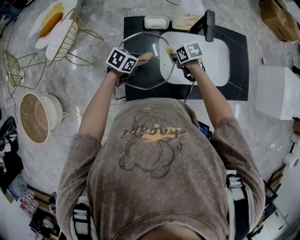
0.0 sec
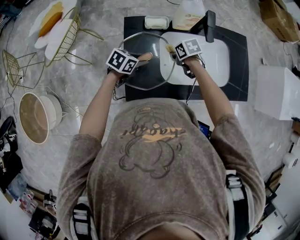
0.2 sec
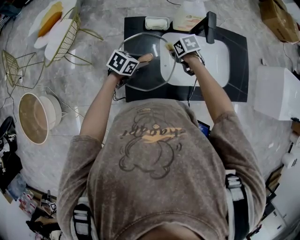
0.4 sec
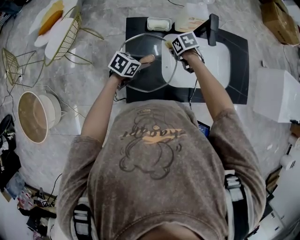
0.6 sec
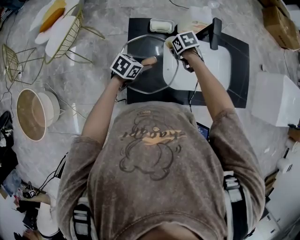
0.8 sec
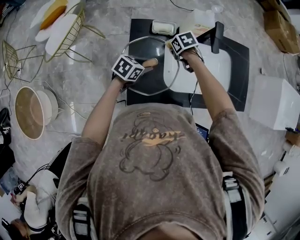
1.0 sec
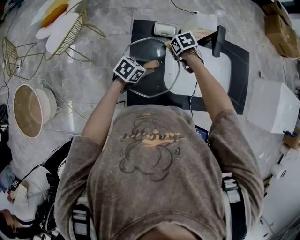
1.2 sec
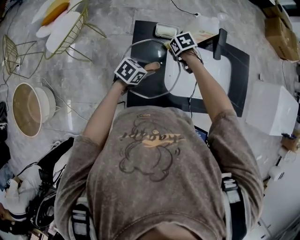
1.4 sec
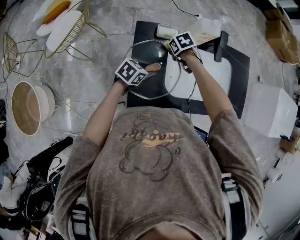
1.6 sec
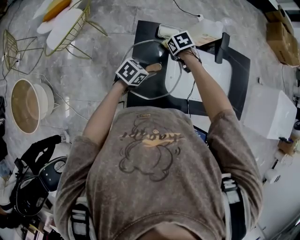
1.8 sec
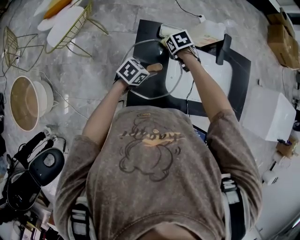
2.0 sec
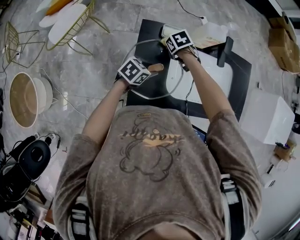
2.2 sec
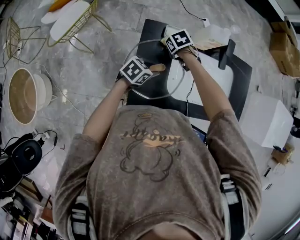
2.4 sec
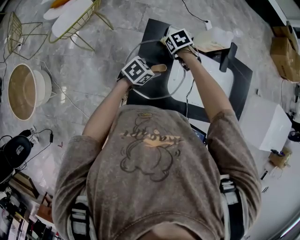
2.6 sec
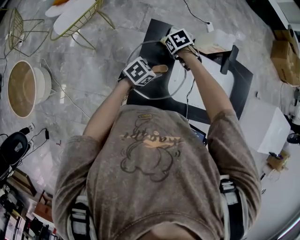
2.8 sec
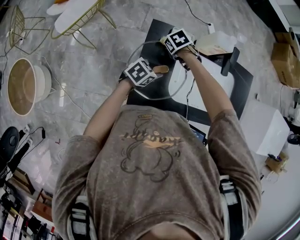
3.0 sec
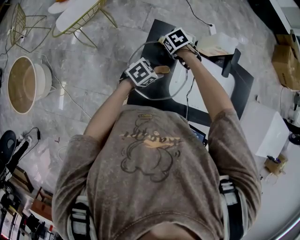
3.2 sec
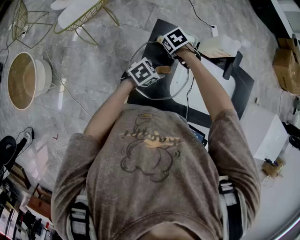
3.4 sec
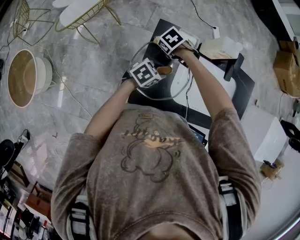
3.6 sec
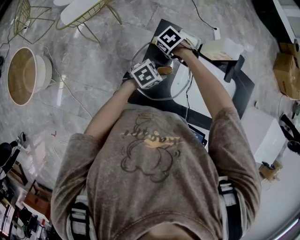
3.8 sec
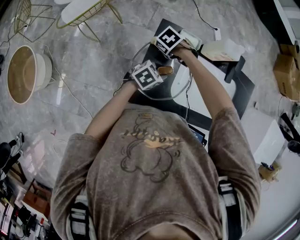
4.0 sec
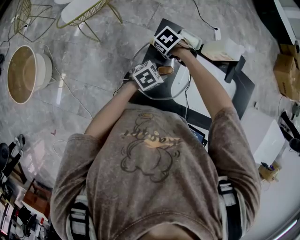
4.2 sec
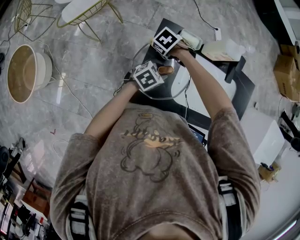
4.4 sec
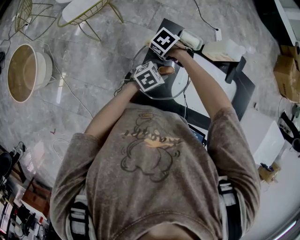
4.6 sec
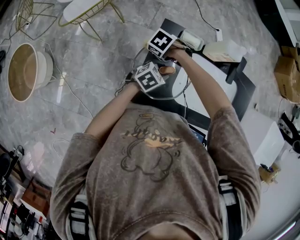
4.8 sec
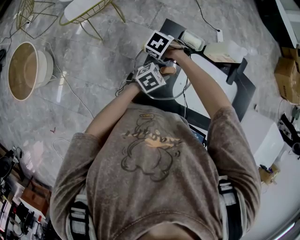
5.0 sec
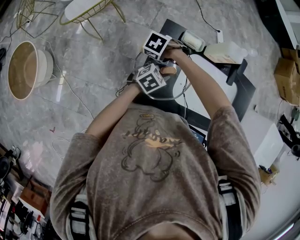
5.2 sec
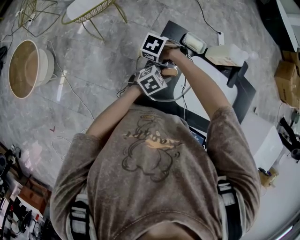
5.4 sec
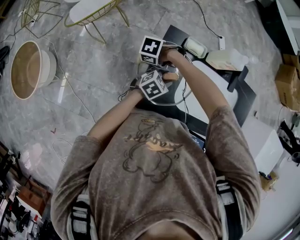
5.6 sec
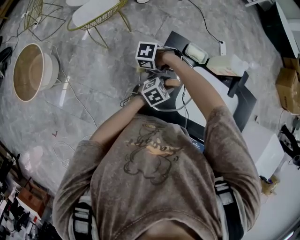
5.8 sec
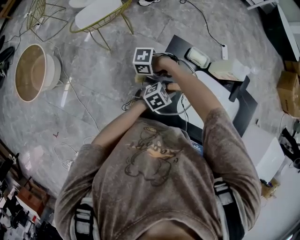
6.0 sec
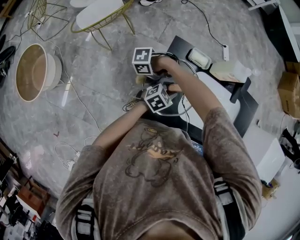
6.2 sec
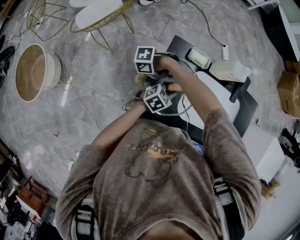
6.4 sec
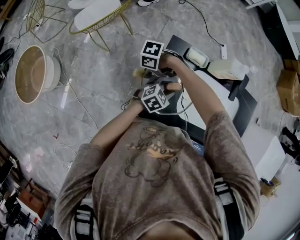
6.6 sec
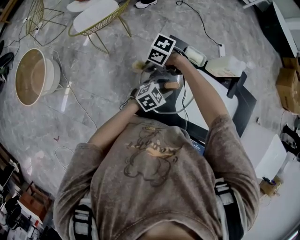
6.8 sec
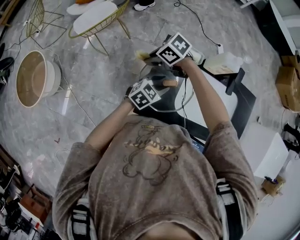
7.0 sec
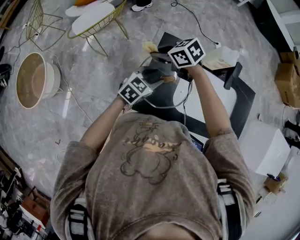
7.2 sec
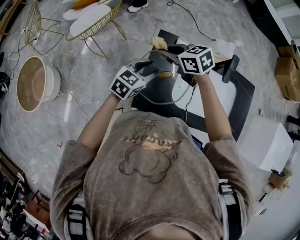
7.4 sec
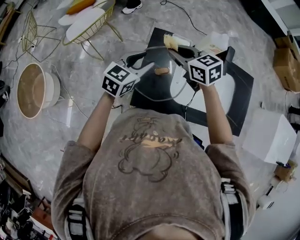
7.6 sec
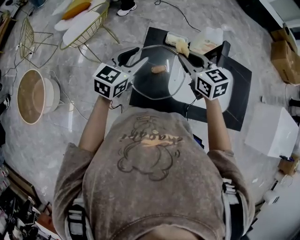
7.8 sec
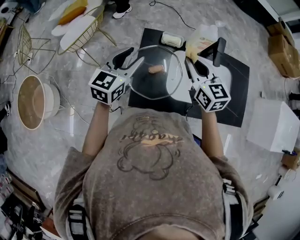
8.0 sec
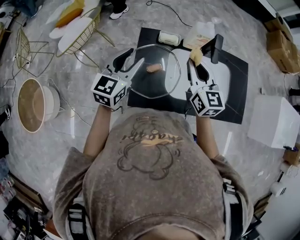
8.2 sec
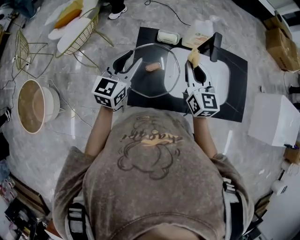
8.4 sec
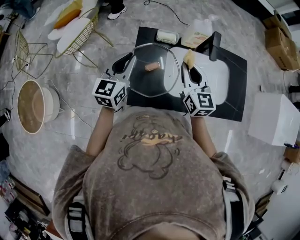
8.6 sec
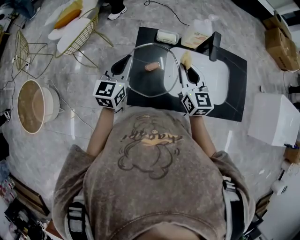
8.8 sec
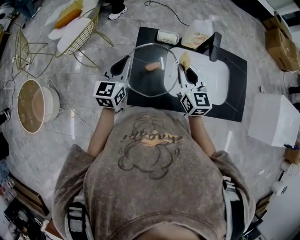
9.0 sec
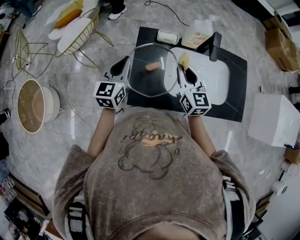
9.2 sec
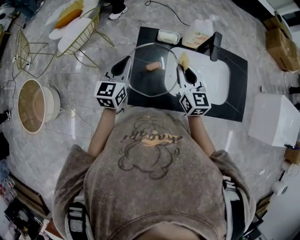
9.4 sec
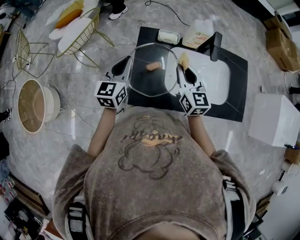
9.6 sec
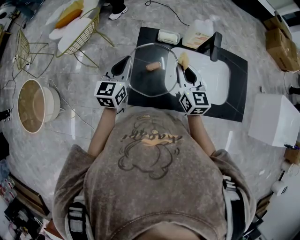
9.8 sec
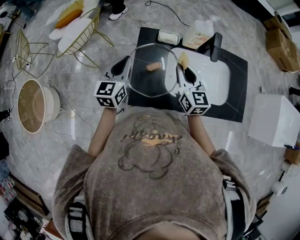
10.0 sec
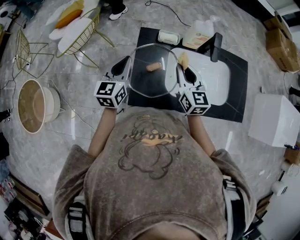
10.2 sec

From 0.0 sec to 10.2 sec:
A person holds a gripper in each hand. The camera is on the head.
From 0.0 sec to 1.4 sec: The right gripper moves some 10 cm.
From 1.4 sec to 3.0 sec: The right gripper moves approximately 10 cm.
From 3.0 sec to 4.4 sec: The right gripper moves approximately 10 cm, and turns by roughly 20 degrees.
From 4.4 sec to 5.8 sec: The right gripper ends up some 10 cm from where it was, and turns by approximately 40 degrees.
From 5.8 sec to 7.2 sec: The left gripper travels upward by roughly 10 cm, while the right gripper shifts approximately 15 cm upward, and swivels about 60 degrees.
From 7.2 sec to 8.8 sec: The left gripper moves upward, some 10 cm, changes its angle by roughly 30 degrees, and closes. Meanwhile the right gripper changes place by some 25 cm, and changes its angle by about 70 degrees.
From 8.8 sec to 10.2 sec: The grippers make only small movements.

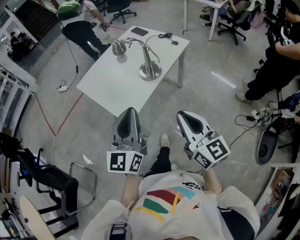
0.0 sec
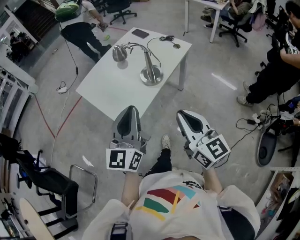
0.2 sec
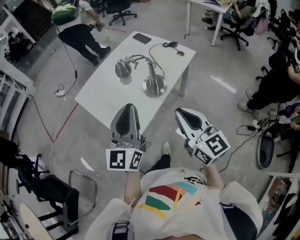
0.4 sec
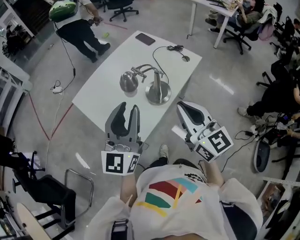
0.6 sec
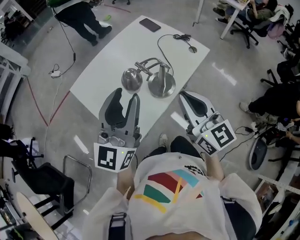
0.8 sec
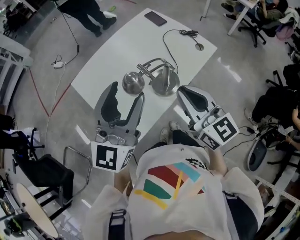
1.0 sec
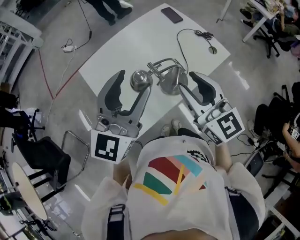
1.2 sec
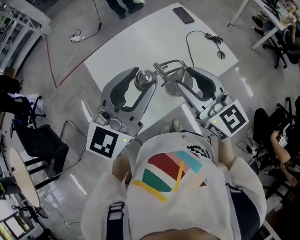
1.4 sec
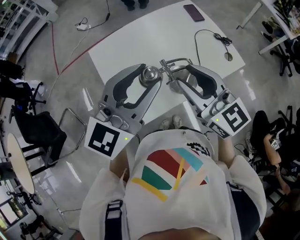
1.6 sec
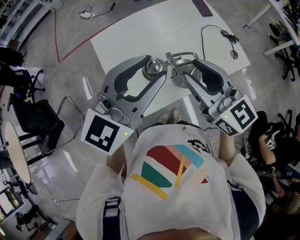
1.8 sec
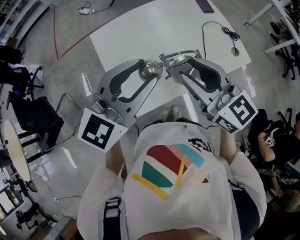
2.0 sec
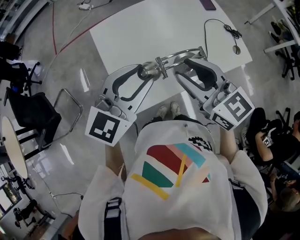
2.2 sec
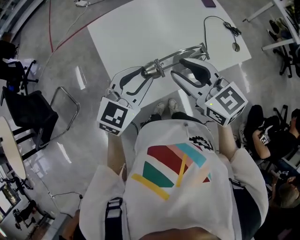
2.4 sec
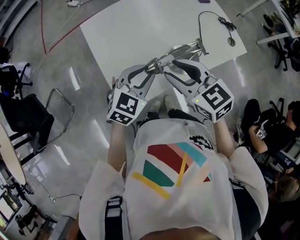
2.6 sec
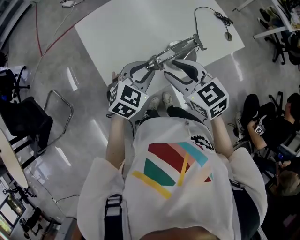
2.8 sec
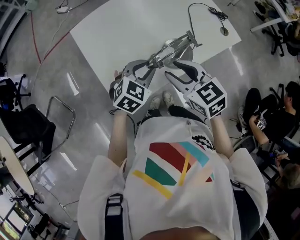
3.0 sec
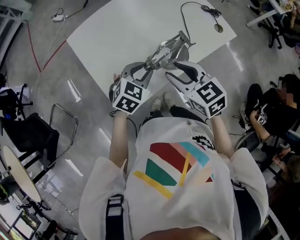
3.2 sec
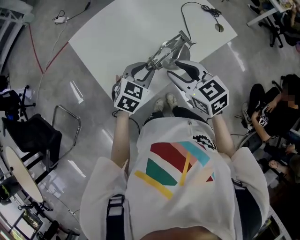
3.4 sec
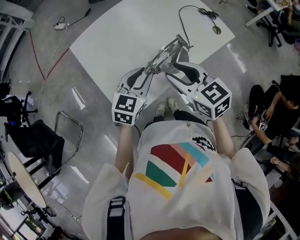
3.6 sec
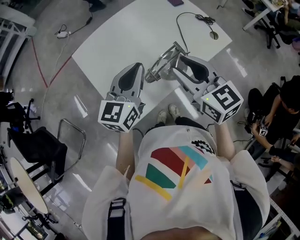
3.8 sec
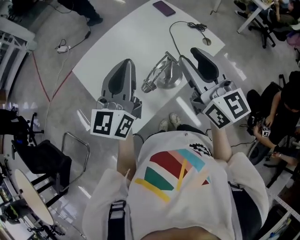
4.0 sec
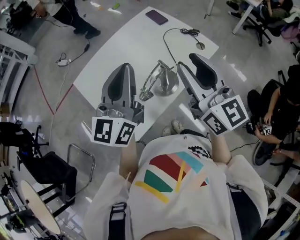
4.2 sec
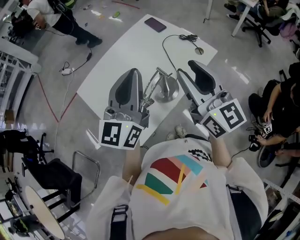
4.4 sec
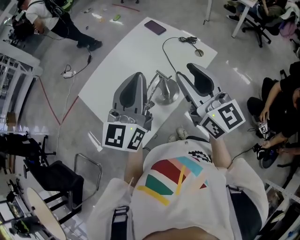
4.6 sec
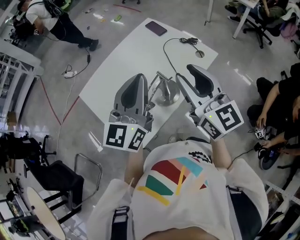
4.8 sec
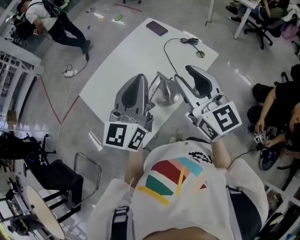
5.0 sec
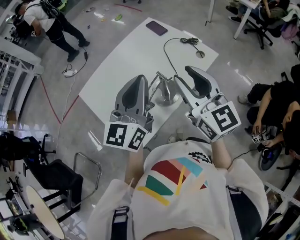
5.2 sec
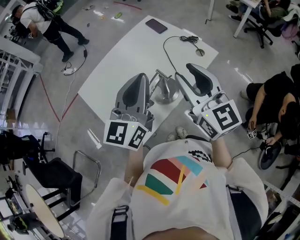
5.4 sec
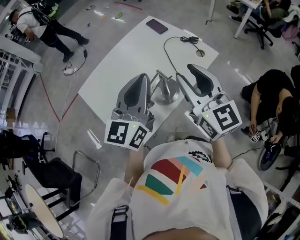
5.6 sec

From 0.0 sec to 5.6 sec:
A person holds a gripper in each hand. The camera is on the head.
From 0.0 sec to 1.4 sec: The two grippers go about 35 cm forward. The left gripper opens; the right gripper changes its angle by approximately 30 degrees, and opens up.
From 1.4 sec to 2.8 sec: The right gripper travels downward by some 15 cm, and turns by approximately 30 degrees; the left gripper is displaced downward by approximately 25 cm, and tilts its fingers some 40 degrees downward.
From 2.8 sec to 4.2 sec: The right gripper goes roughly 20 cm upward and to the right, and tilts its fingers approximately 40 degrees upward. Meanwhile the left gripper is displaced upward by roughly 25 cm, tilts its fingers some 50 degrees upward, and closes its fingers.
From 4.2 sec to 5.6 sec: The left gripper heads to the right, covering approximately 5 cm.

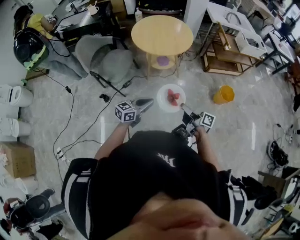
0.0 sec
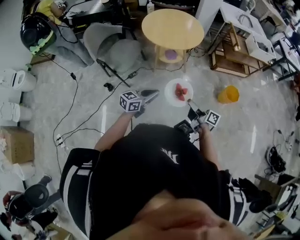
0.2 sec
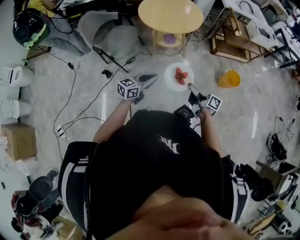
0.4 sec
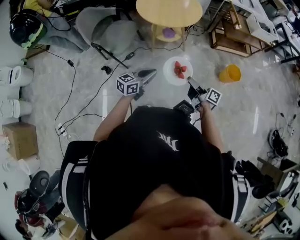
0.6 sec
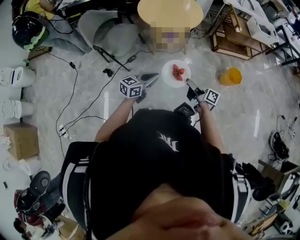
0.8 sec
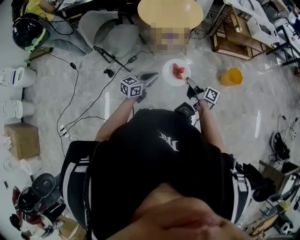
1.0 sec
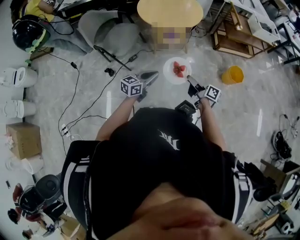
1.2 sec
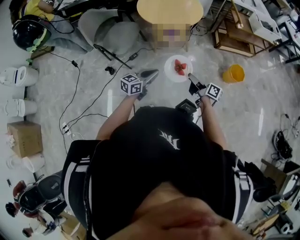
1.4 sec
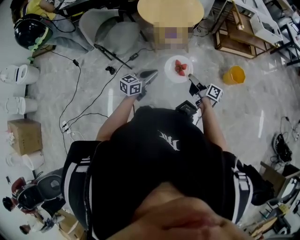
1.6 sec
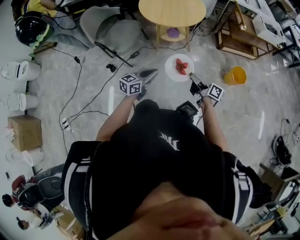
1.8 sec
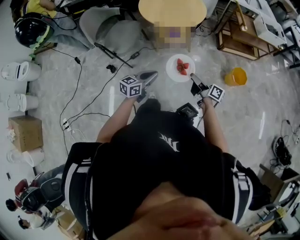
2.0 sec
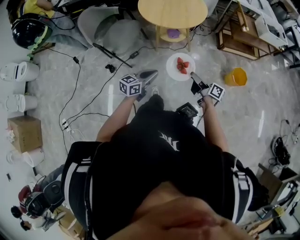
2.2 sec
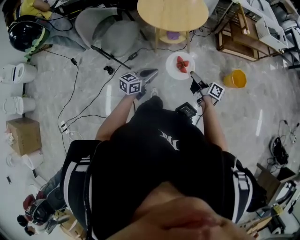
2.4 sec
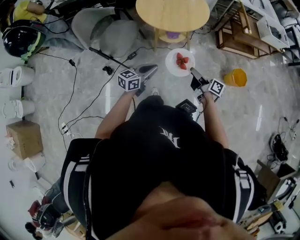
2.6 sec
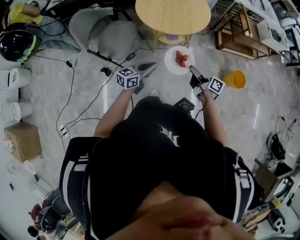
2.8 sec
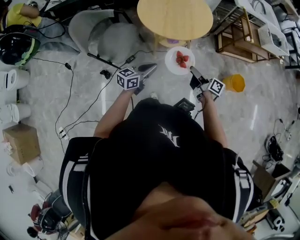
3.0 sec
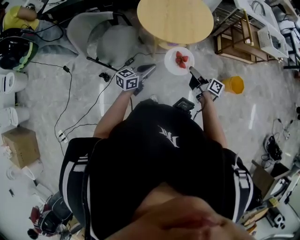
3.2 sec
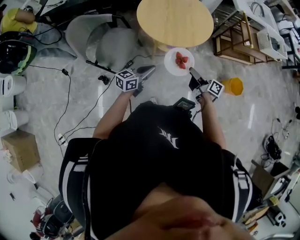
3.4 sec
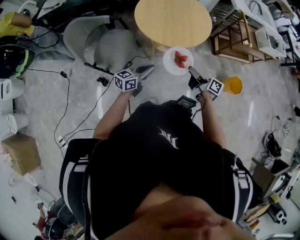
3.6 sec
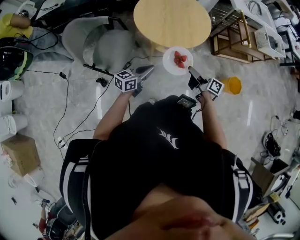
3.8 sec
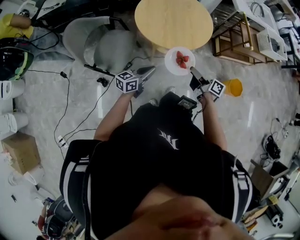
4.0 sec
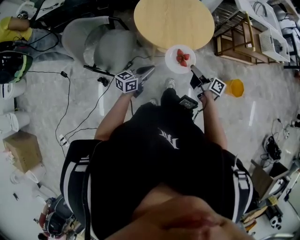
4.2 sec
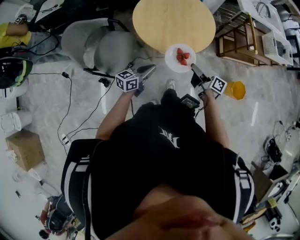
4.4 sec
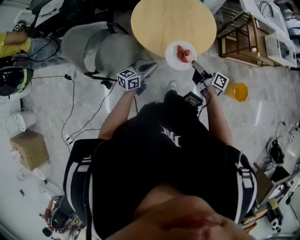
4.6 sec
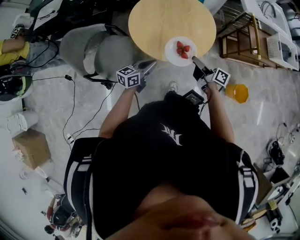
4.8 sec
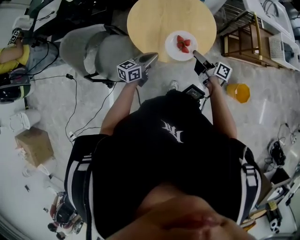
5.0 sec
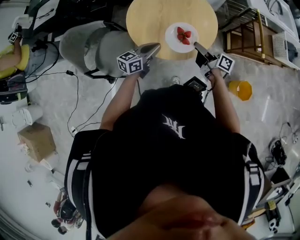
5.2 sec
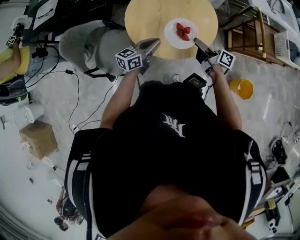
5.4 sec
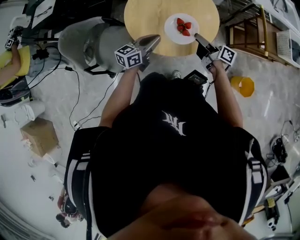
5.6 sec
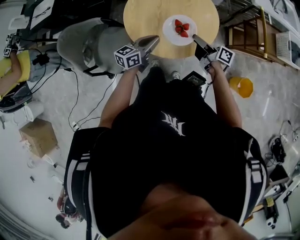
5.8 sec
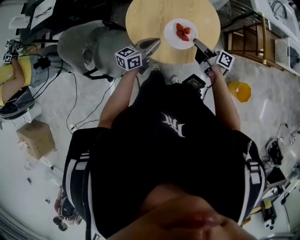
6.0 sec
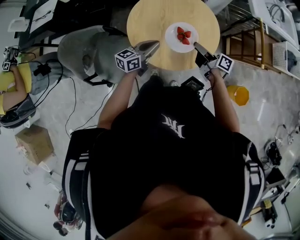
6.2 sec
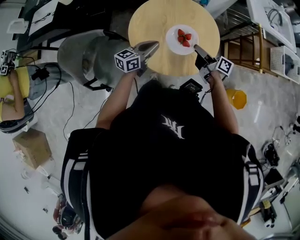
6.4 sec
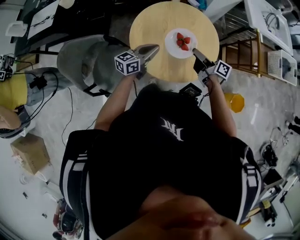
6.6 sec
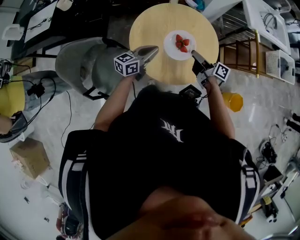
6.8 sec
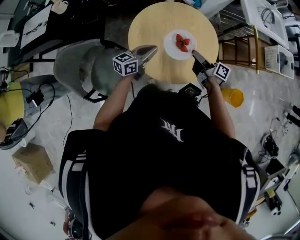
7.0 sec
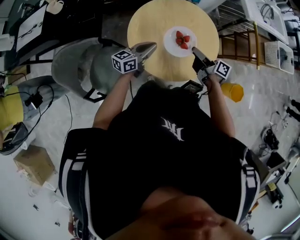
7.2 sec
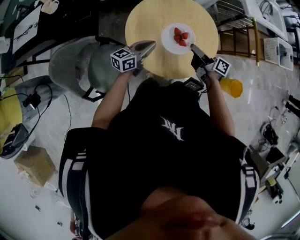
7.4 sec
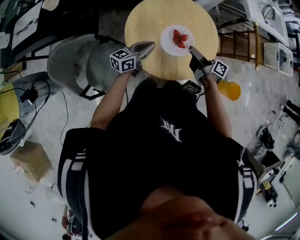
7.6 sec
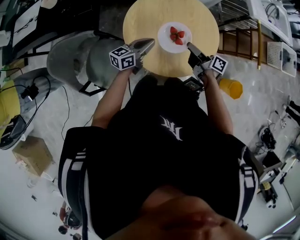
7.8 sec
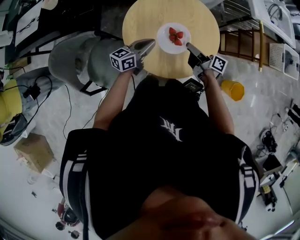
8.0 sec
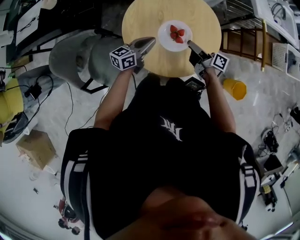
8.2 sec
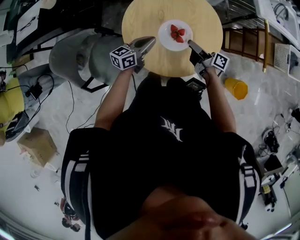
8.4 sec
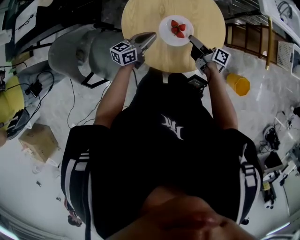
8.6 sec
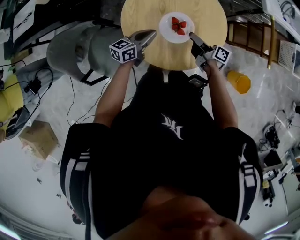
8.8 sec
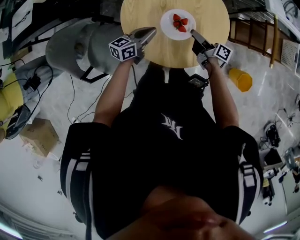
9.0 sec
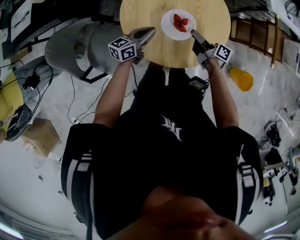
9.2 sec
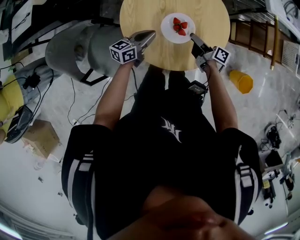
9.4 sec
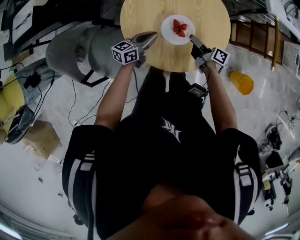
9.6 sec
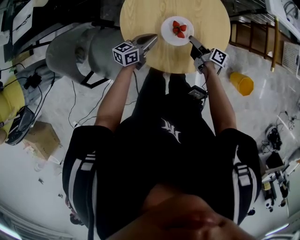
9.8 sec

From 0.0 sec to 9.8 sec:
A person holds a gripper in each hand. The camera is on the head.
From 1.4 sec to 2.8 sec: The left gripper moves some 15 cm.
From 2.8 sec to 4.2 sec: The left gripper ends up about 15 cm from where it was.
From 4.2 sec to 5.6 sec: The left gripper changes place by approximately 25 cm.
From 5.6 sec to 7.0 sec: The left gripper moves roughly 10 cm.
From 8.4 sec to 9.8 sec: The left gripper heads downward, covering roughly 5 cm.
